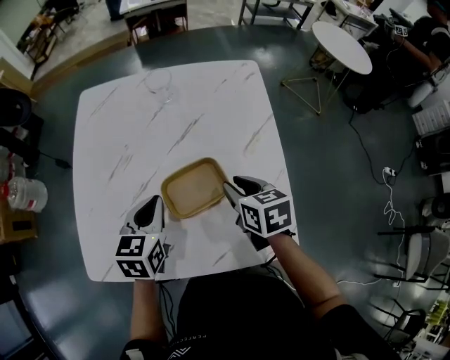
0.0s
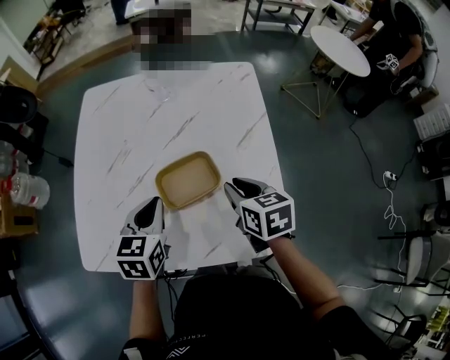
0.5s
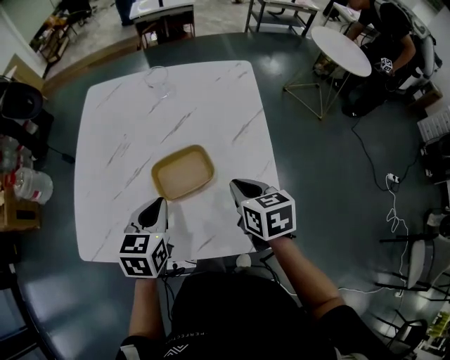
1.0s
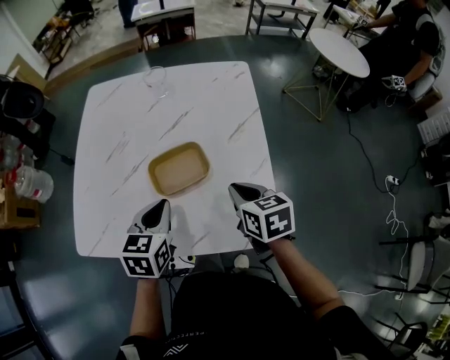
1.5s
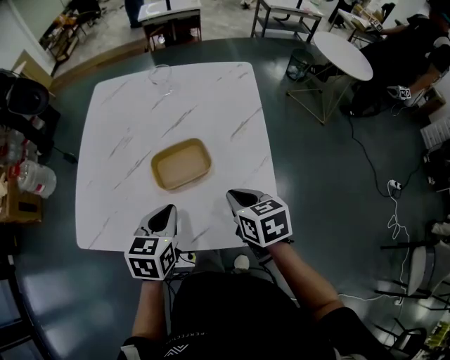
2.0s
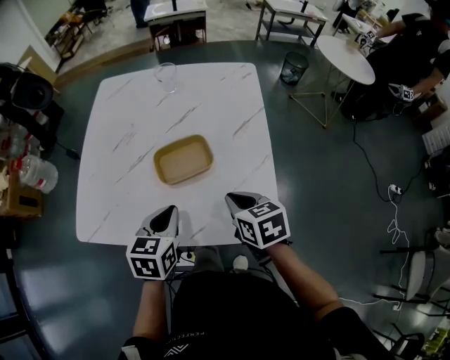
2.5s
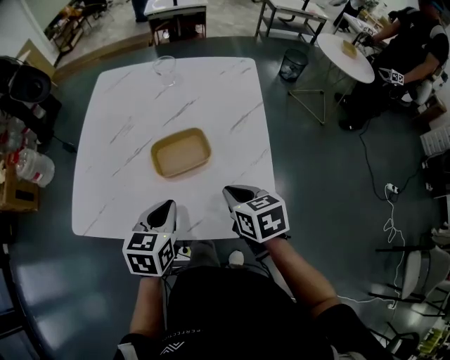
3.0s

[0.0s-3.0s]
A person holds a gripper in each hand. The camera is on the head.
0.0s to 1.5s: The right gripper shifts about 10 cm backward, and closes up; the left gripper goes approximately 10 cm backward and to the right.
1.5s to 3.0s: The right gripper ends up approximately 5 cm from where it was, while the left gripper travels backward by about 5 cm.

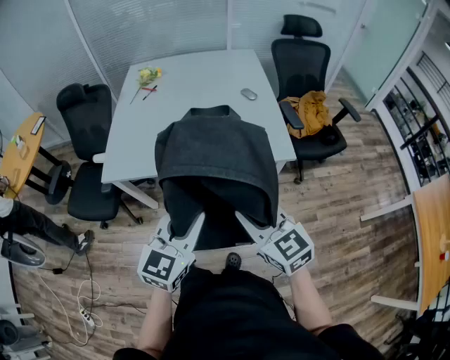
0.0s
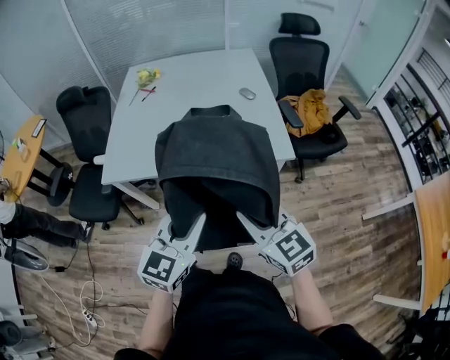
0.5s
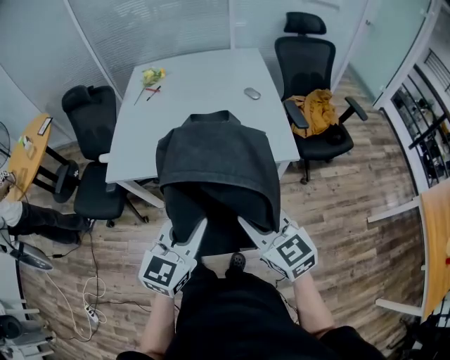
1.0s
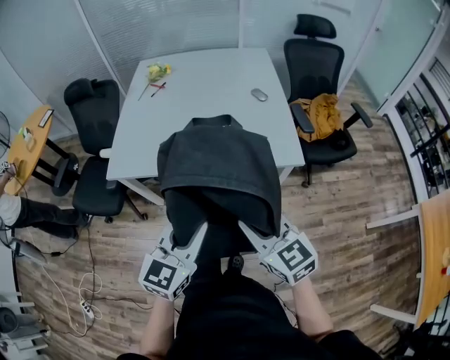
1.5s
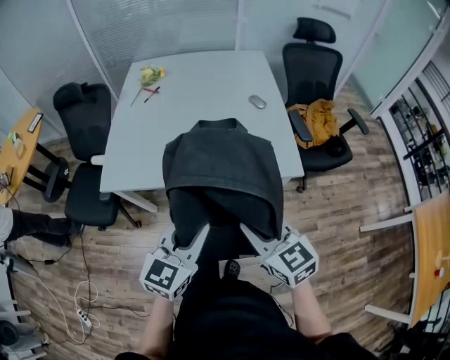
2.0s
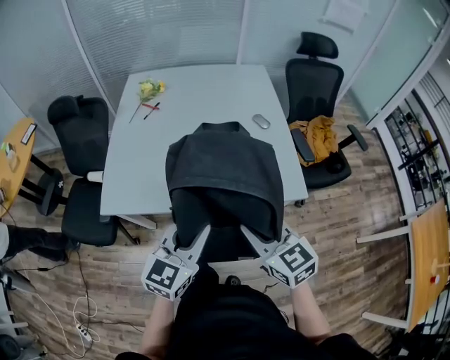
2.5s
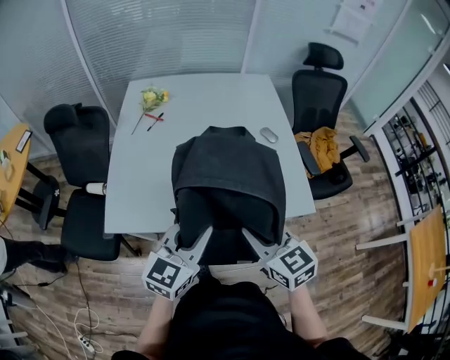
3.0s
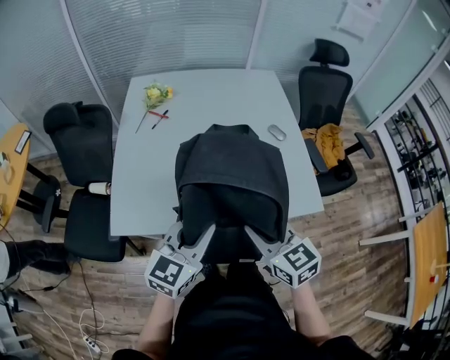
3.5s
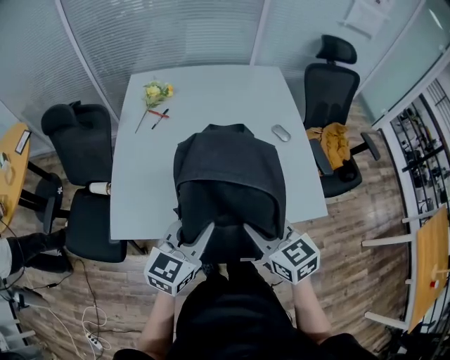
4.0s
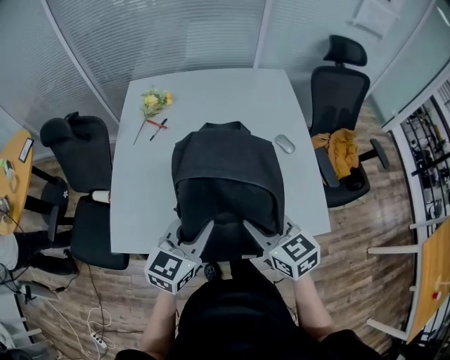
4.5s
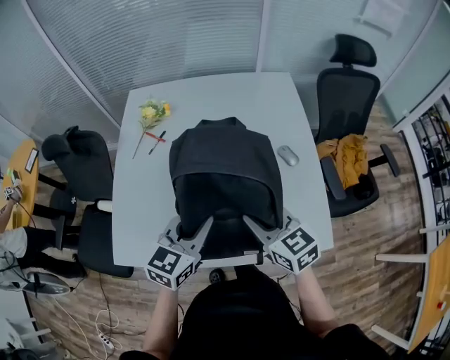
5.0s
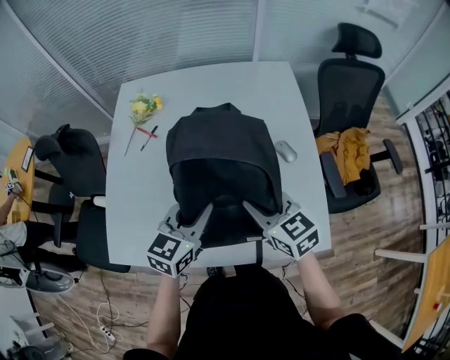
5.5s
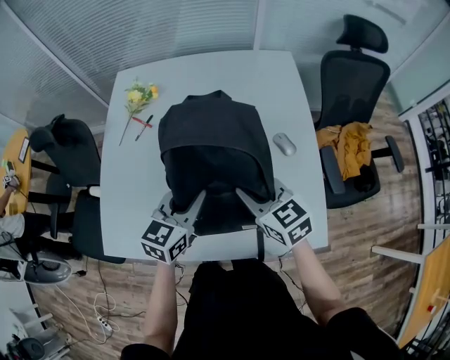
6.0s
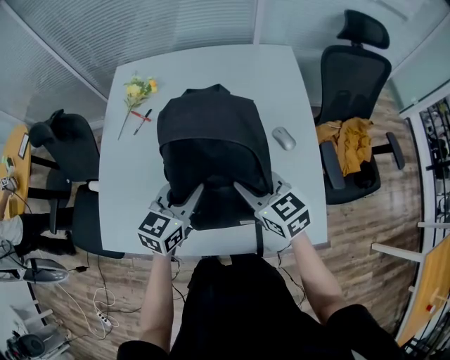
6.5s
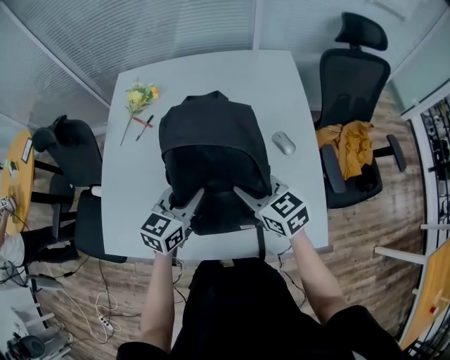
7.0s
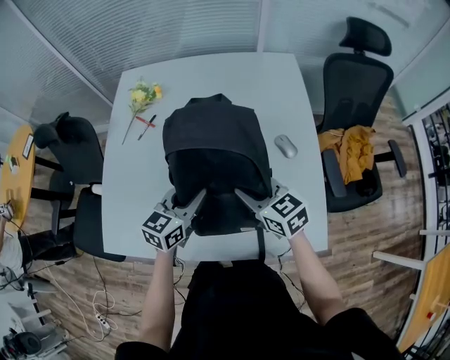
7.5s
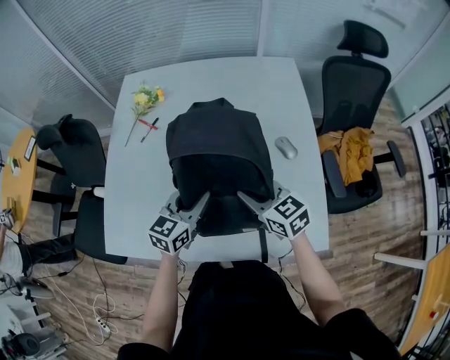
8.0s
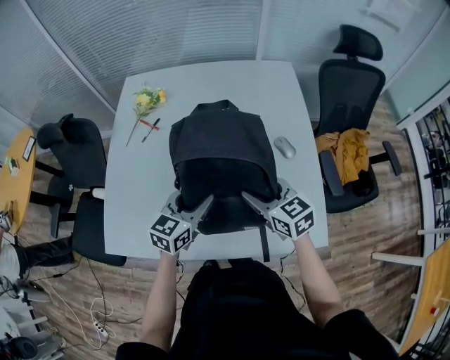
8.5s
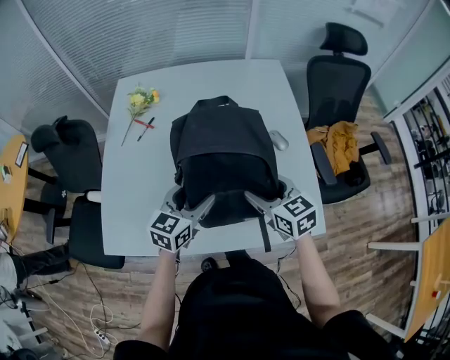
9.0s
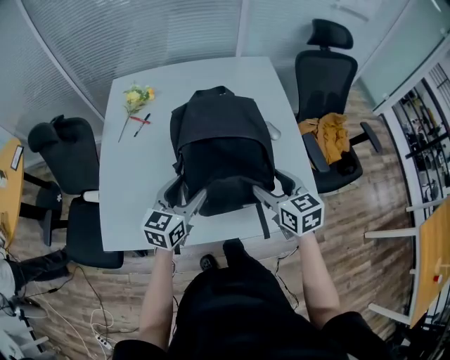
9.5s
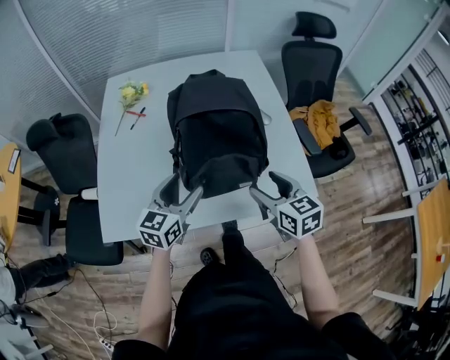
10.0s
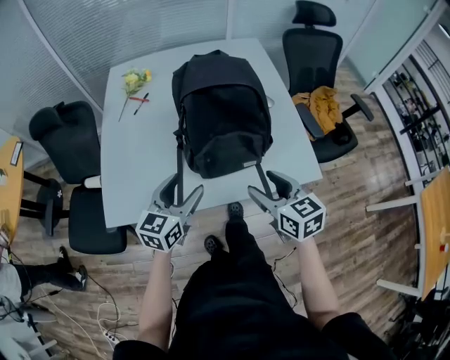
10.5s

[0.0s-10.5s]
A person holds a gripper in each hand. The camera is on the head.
0.0s to 2.0s: Both grippers travel together forward, some 5 cm.
2.0s to 4.0s: The two grippers go approximately 25 cm forward and to the left.
4.0s to 6.5s: The grippers both shift forward and to the right by about 25 cm.
6.5s to 8.5s: The right gripper opens its fingers.
8.5s to 10.5s: The two grippers go roughly 20 cm backward. The left gripper opens.

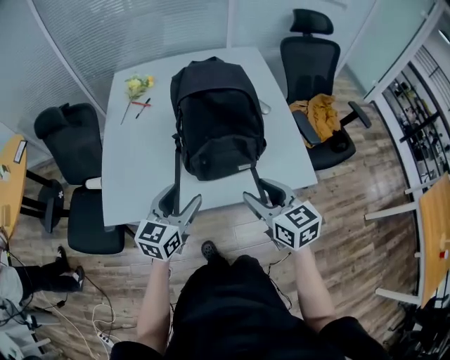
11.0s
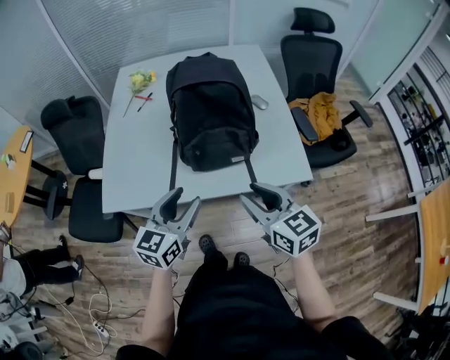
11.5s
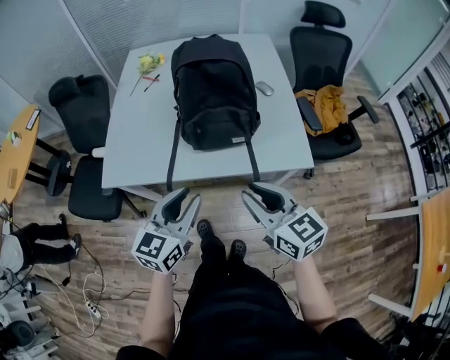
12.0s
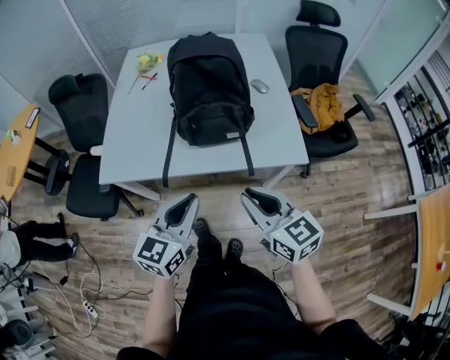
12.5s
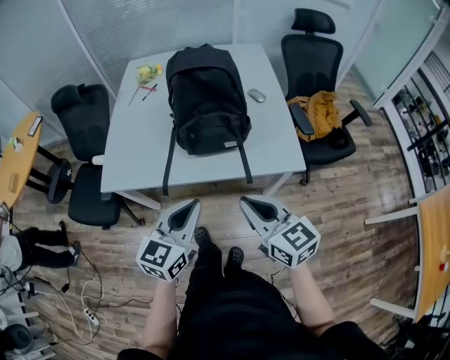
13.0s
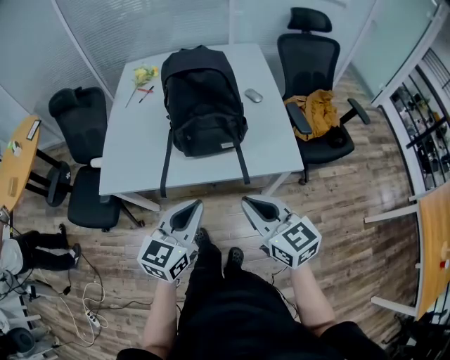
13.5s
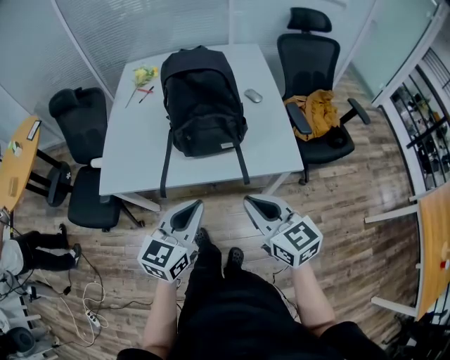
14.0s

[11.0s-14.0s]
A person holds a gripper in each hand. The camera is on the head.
11.0s to 12.5s: The grippers both shift backward by about 15 cm. The left gripper closes up, while the right gripper closes its fingers.
12.5s to 14.0s: The grippers make only small movements.

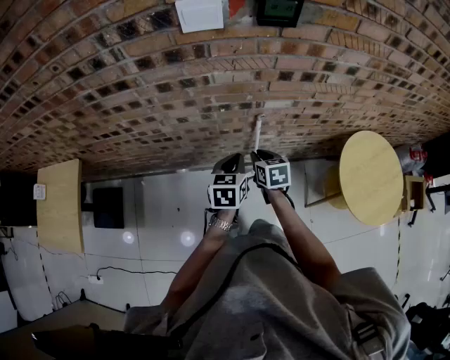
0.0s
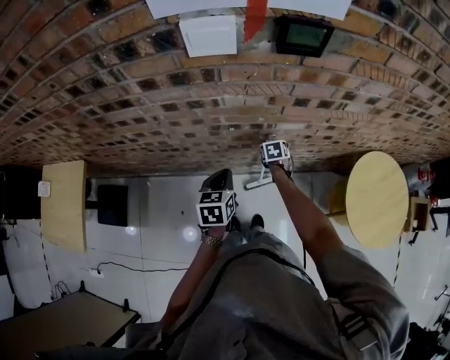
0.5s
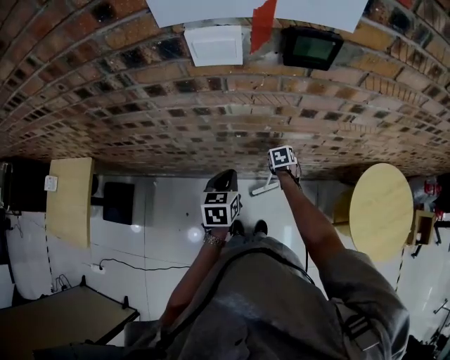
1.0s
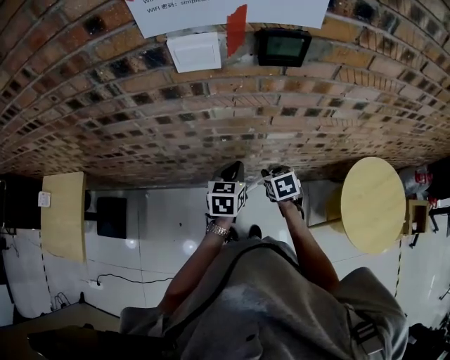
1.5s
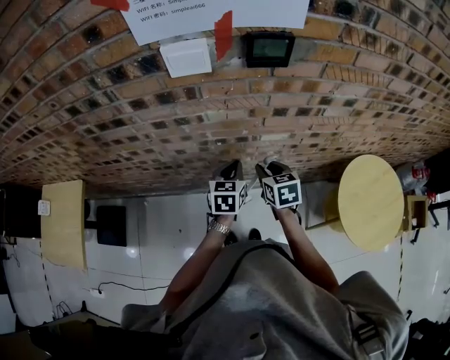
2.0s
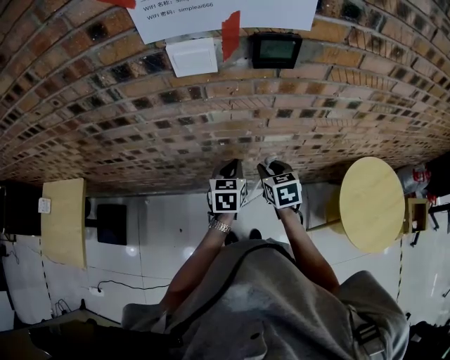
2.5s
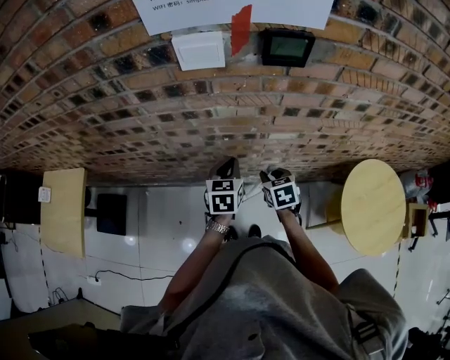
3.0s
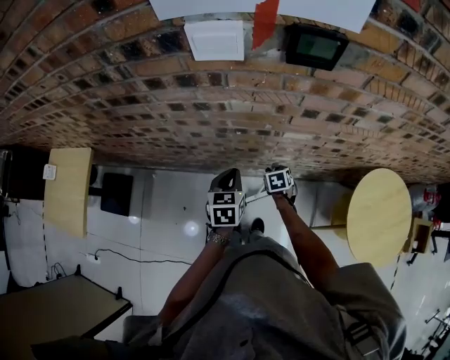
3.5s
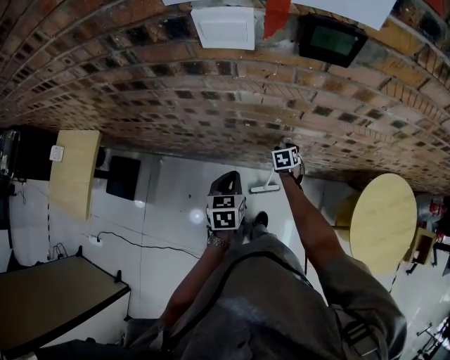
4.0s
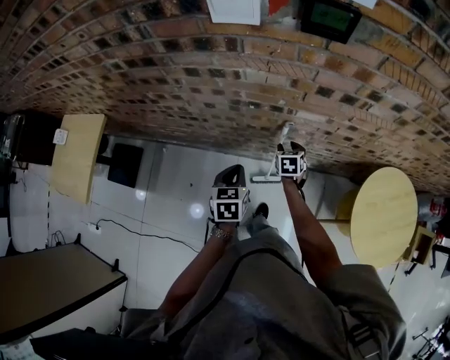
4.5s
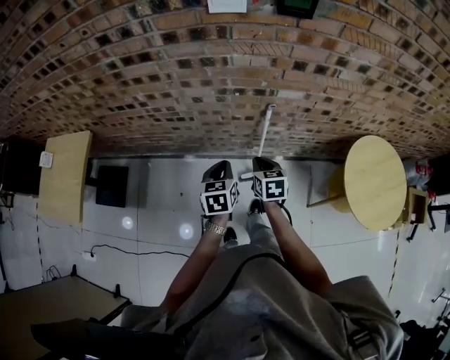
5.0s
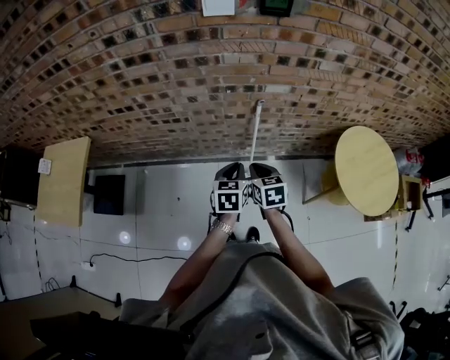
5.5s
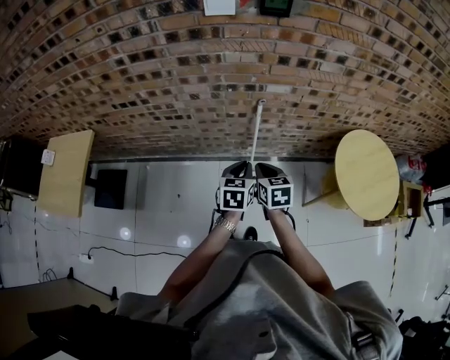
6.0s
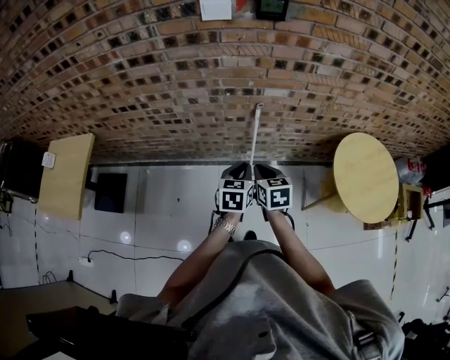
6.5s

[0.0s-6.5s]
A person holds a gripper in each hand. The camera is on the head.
0.0s to 2.0s: The right gripper moves upward and forward, approximately 10 cm. The left gripper goes about 10 cm forward.
2.0s to 4.5s: The left gripper heads backward, to the left and downward, covering roughly 15 cm, while the right gripper goes about 20 cm downward.
4.5s to 6.5s: The left gripper goes roughly 15 cm backward and to the right. Meanwhile the right gripper heads backward and upward, covering some 35 cm, and closes up.

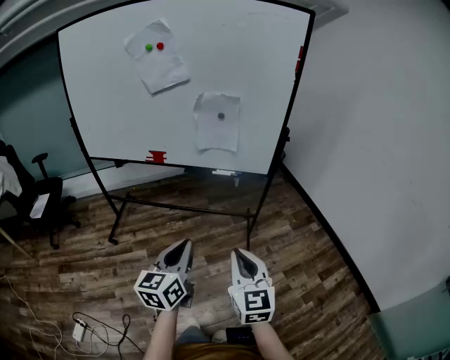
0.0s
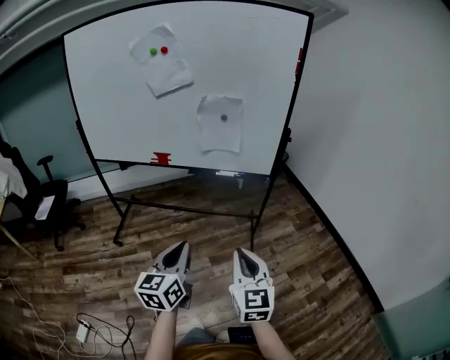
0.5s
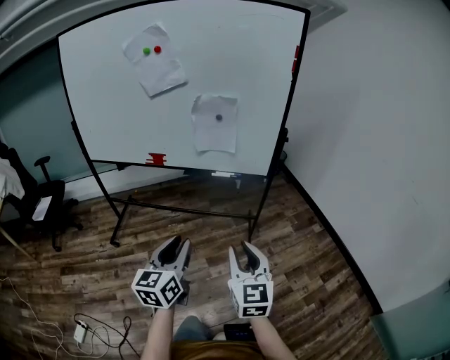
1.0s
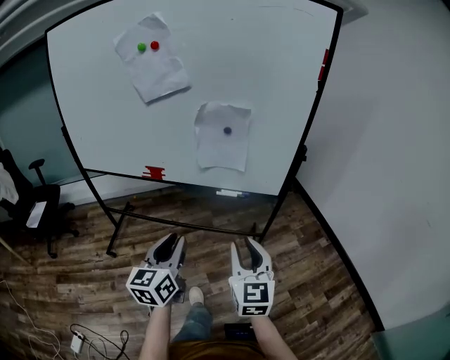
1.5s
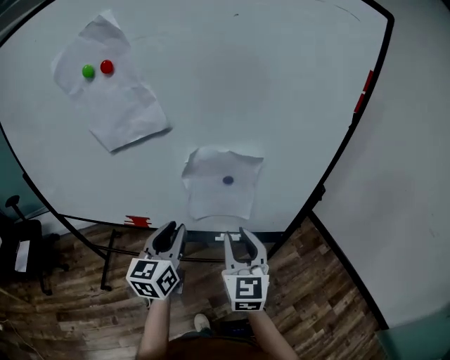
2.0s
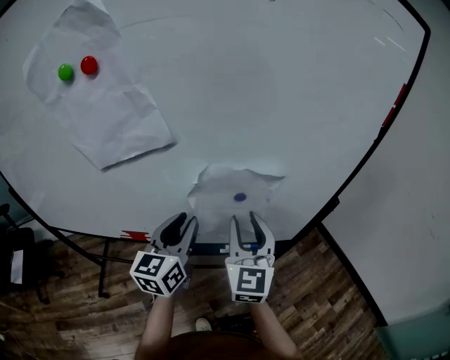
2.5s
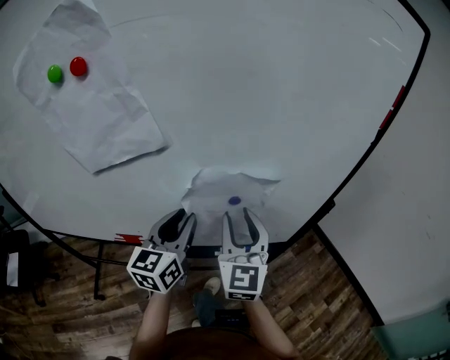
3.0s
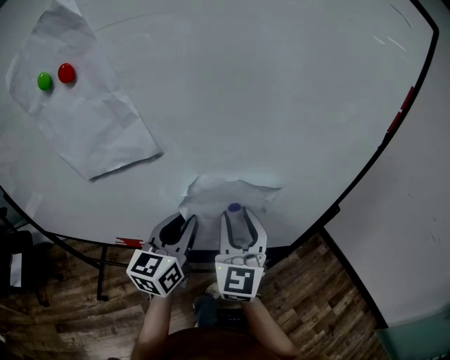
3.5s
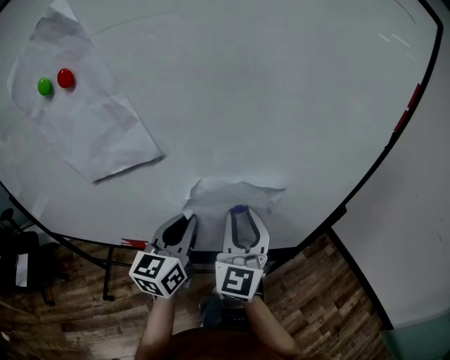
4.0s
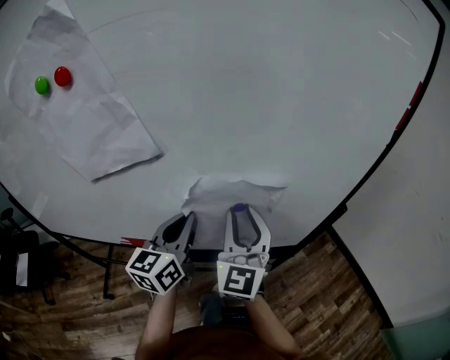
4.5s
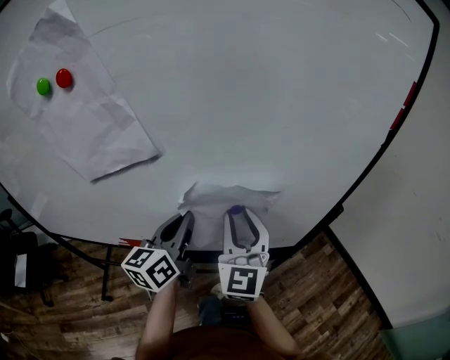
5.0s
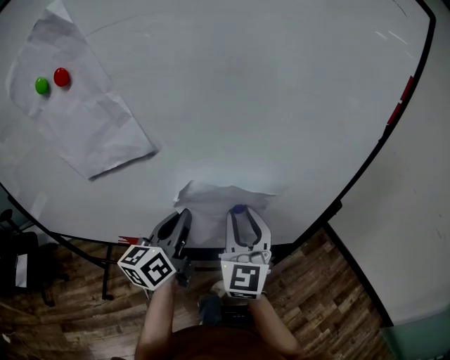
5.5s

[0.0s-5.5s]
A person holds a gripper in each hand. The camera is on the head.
0.0s to 2.0s: Both grippers are carried forward, approximately 40 cm. The right gripper opens its fingers.
2.0s to 3.5s: The two grippers go some 10 cm forward.
3.5s to 5.5s: There are only small adjustments of the grippers.
